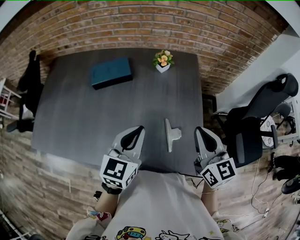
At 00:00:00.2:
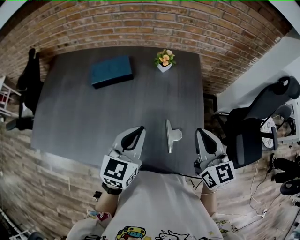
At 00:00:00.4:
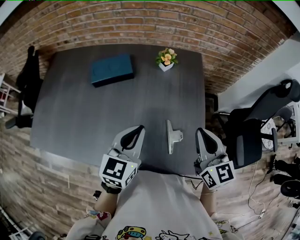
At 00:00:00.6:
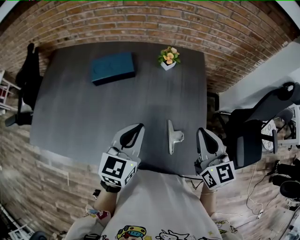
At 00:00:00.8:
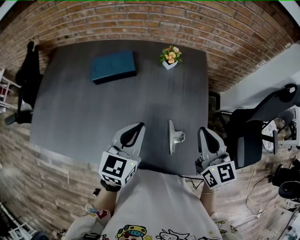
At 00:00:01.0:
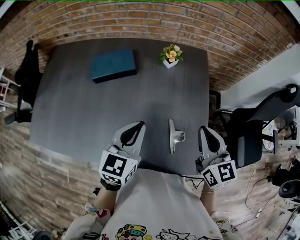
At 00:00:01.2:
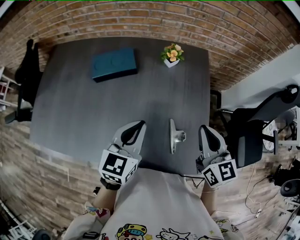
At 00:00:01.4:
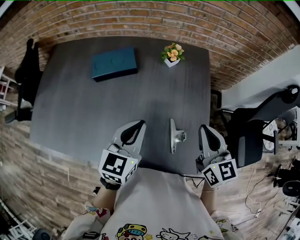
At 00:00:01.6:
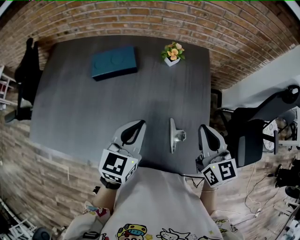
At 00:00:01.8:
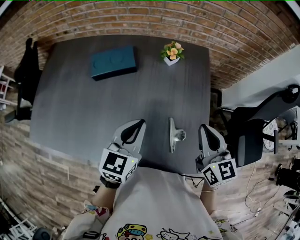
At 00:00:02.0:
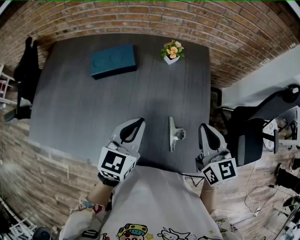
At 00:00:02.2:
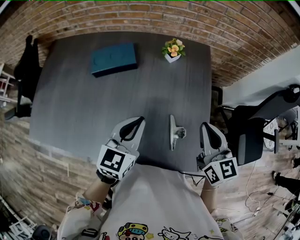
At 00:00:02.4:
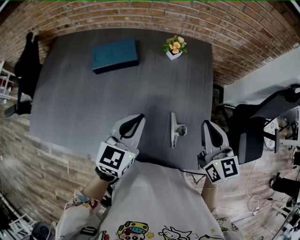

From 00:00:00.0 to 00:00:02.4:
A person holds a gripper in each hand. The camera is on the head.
From 00:00:00.0 to 00:00:01.2: The grippers make only small movements.
From 00:00:01.2 to 00:00:02.4: The two grippers keep their place.

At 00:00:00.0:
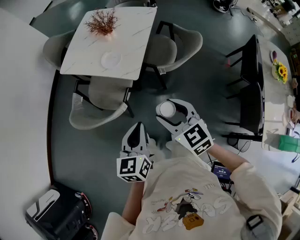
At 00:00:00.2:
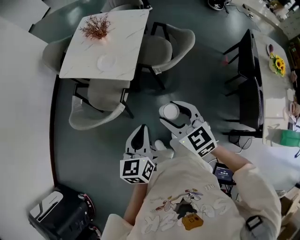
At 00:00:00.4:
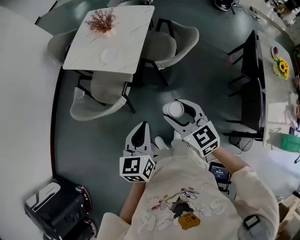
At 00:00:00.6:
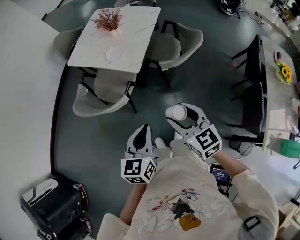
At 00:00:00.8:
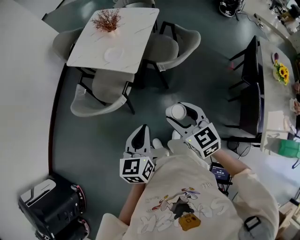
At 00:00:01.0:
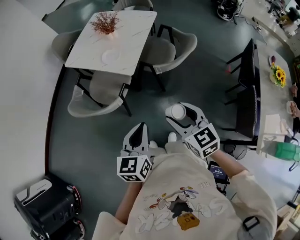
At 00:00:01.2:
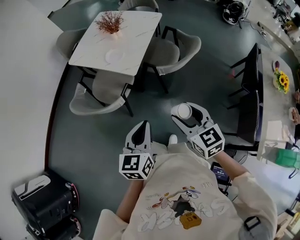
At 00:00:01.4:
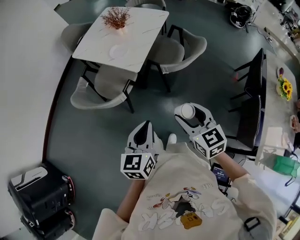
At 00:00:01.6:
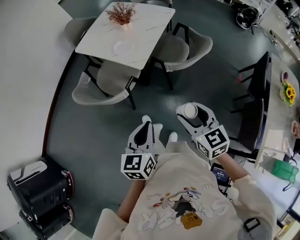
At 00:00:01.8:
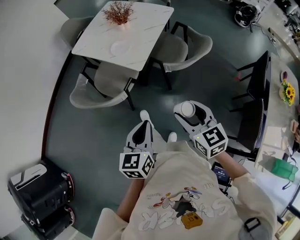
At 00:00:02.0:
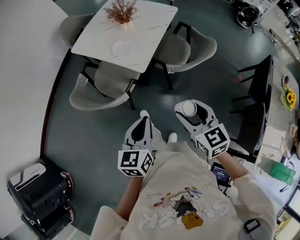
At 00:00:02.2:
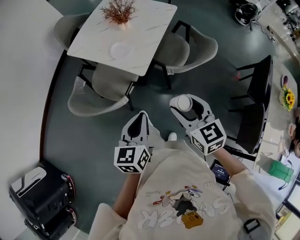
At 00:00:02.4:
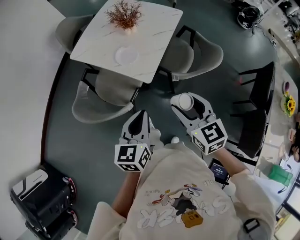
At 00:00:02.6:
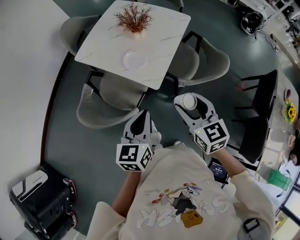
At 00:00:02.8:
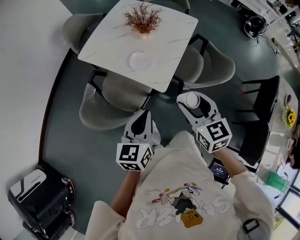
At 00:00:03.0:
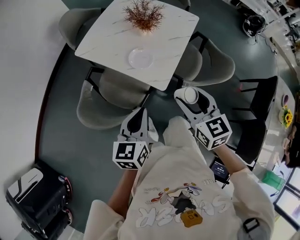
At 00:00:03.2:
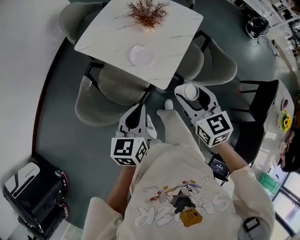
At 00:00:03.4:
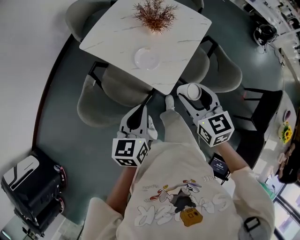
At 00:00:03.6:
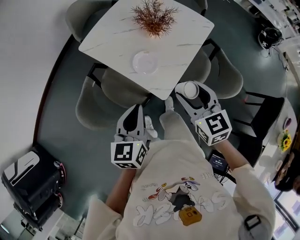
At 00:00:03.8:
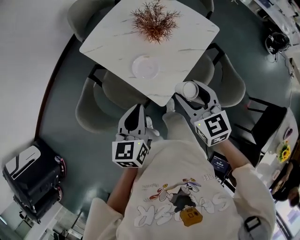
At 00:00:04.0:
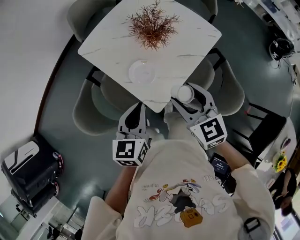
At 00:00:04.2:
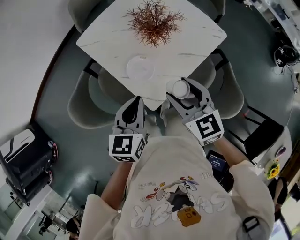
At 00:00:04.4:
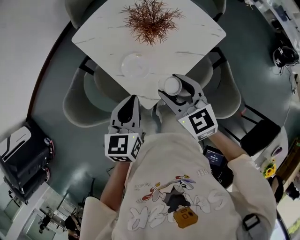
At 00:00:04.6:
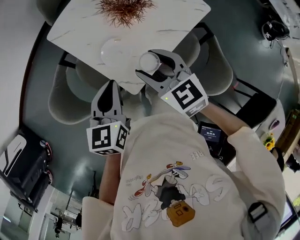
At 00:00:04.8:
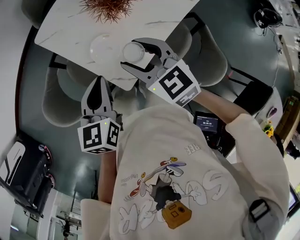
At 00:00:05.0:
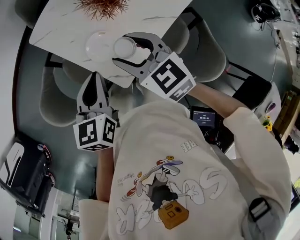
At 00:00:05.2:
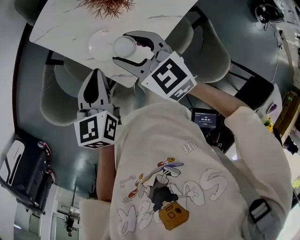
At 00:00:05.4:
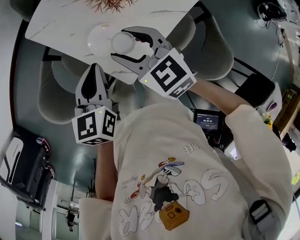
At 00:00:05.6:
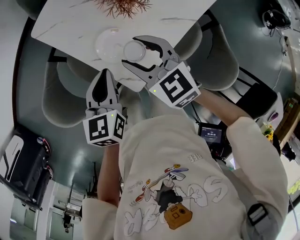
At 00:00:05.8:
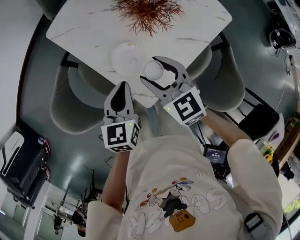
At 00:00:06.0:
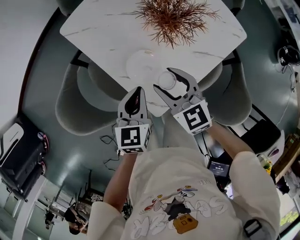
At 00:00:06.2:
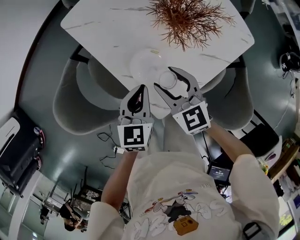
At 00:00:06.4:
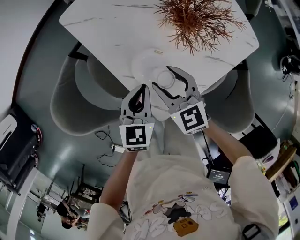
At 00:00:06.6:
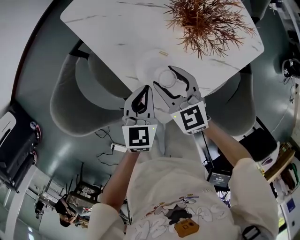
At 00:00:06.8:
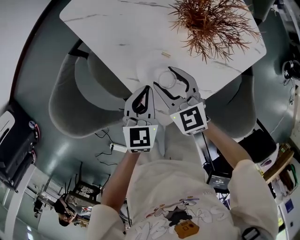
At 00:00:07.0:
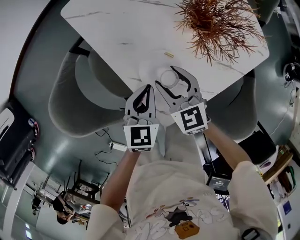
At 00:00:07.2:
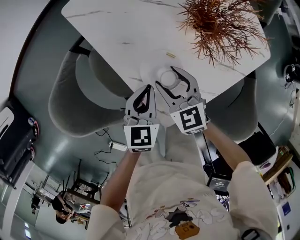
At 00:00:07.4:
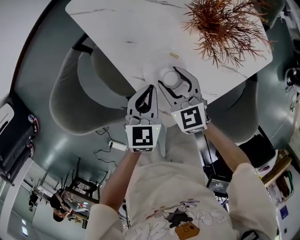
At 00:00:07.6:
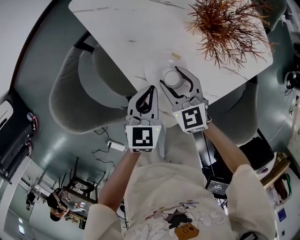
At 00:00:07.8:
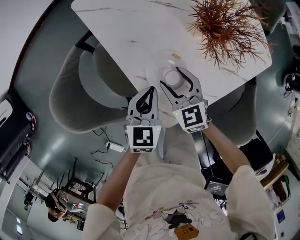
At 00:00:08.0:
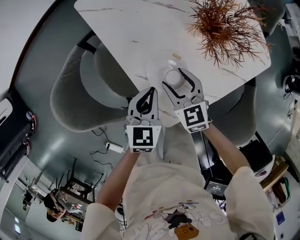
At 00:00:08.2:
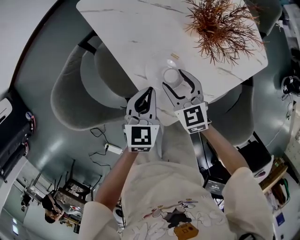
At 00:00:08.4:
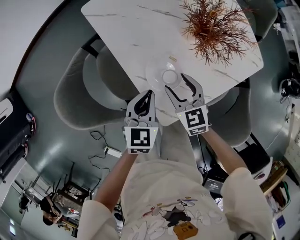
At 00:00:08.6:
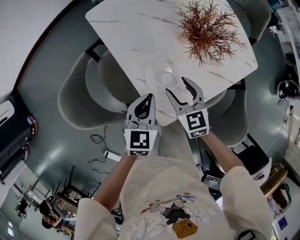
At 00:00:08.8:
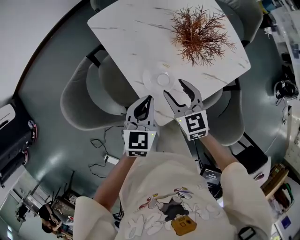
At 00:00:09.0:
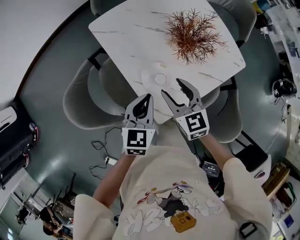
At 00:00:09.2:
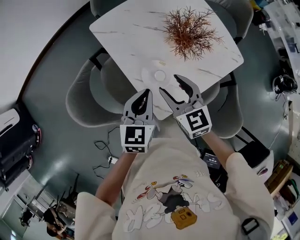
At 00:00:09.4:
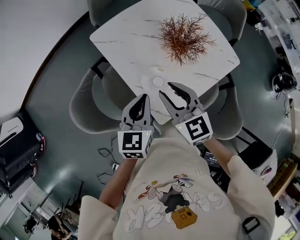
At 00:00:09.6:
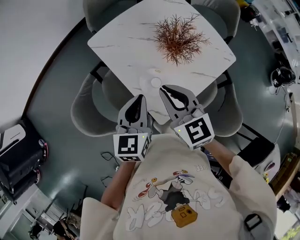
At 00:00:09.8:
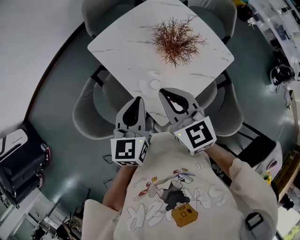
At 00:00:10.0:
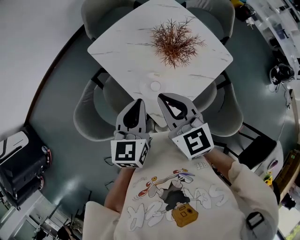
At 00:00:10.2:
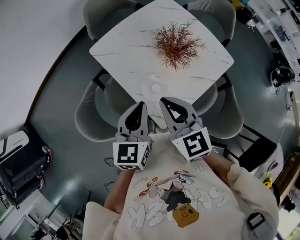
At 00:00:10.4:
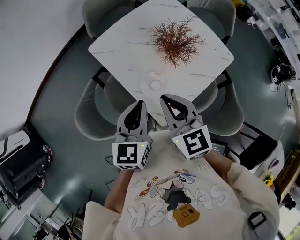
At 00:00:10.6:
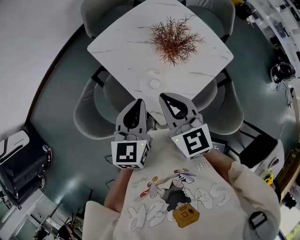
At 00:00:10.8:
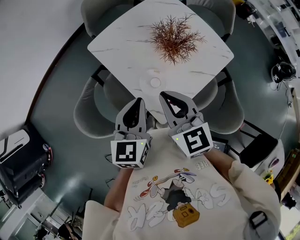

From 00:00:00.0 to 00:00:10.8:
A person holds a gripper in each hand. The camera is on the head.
From 00:00:00.0 to 00:00:01.6: The left gripper heads backward and to the right, covering approximately 15 cm. Meanwhile the right gripper is displaced to the right and backward by some 15 cm.
From 00:00:01.6 to 00:00:03.0: The two grippers go approximately 30 cm forward and to the left.
From 00:00:03.0 to 00:00:04.6: The right gripper moves roughly 25 cm, and rotates some 30 degrees. The left gripper moves some 20 cm, and turns by some 20 degrees.
From 00:00:04.6 to 00:00:06.2: The left gripper travels downward and forward by some 15 cm. Meanwhile the right gripper shifts approximately 15 cm downward, forward and to the left.
From 00:00:06.2 to 00:00:07.8: The left gripper goes some 5 cm downward. Meanwhile the right gripper shifts some 10 cm downward.
From 00:00:07.8 to 00:00:09.2: The grippers both shift upward by roughly 20 cm.
From 00:00:09.2 to 00:00:10.8: Both grippers move upward, approximately 10 cm. The right gripper closes its fingers.

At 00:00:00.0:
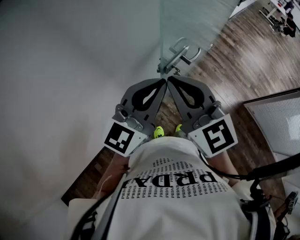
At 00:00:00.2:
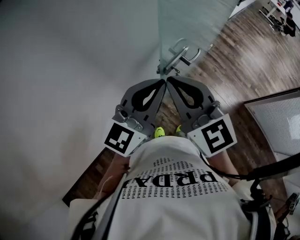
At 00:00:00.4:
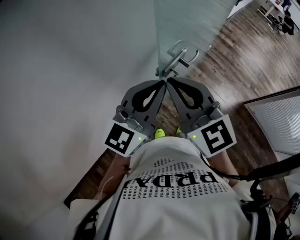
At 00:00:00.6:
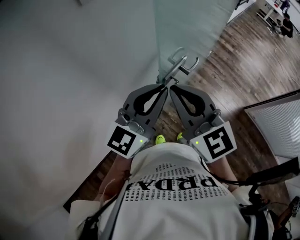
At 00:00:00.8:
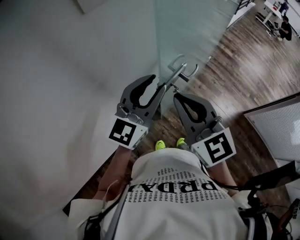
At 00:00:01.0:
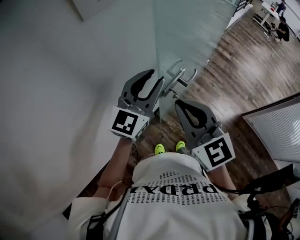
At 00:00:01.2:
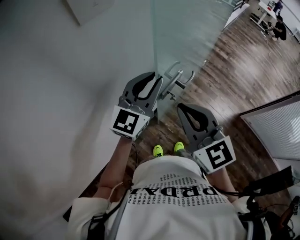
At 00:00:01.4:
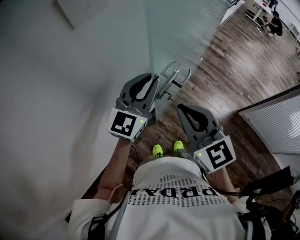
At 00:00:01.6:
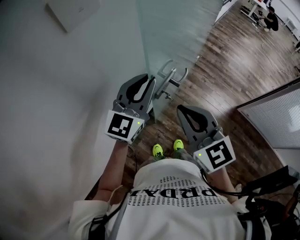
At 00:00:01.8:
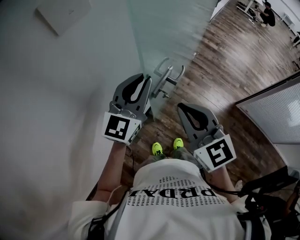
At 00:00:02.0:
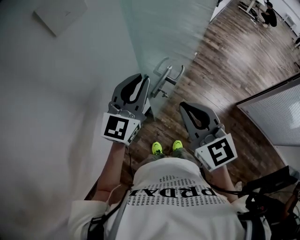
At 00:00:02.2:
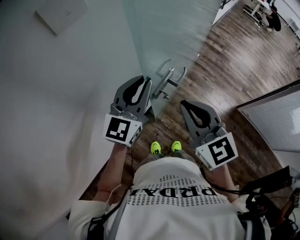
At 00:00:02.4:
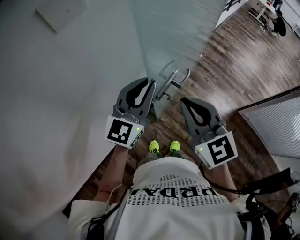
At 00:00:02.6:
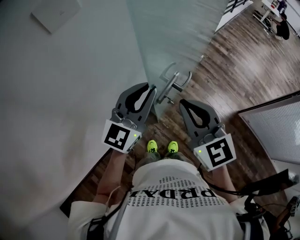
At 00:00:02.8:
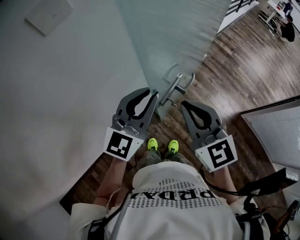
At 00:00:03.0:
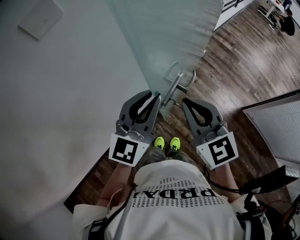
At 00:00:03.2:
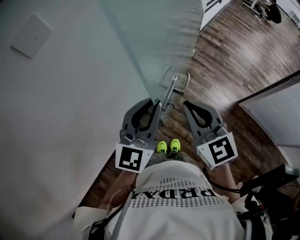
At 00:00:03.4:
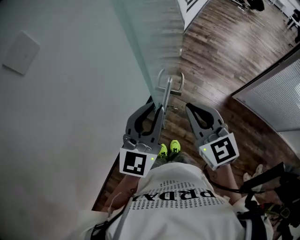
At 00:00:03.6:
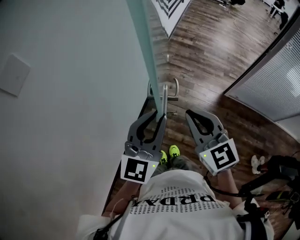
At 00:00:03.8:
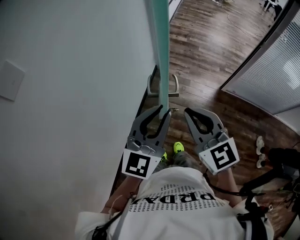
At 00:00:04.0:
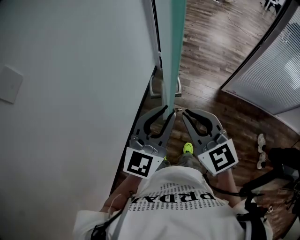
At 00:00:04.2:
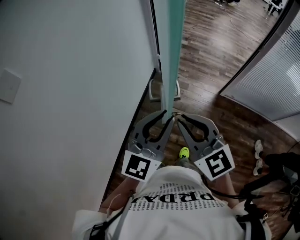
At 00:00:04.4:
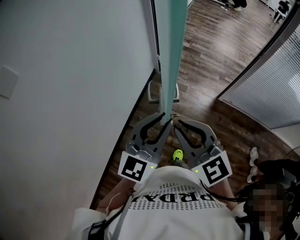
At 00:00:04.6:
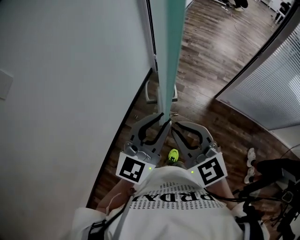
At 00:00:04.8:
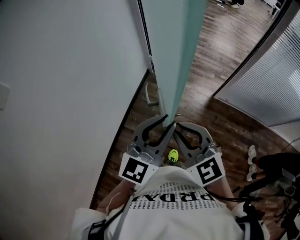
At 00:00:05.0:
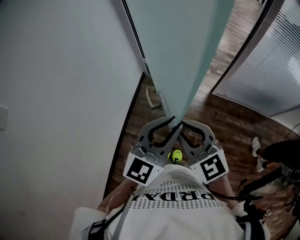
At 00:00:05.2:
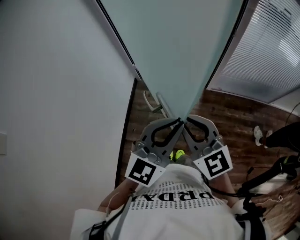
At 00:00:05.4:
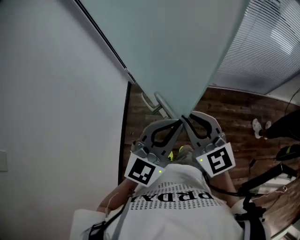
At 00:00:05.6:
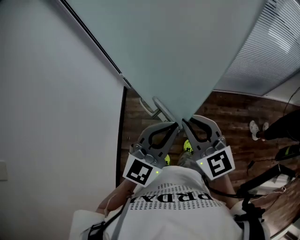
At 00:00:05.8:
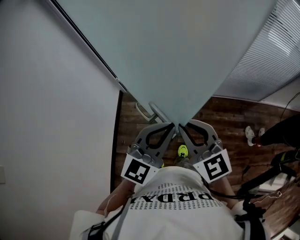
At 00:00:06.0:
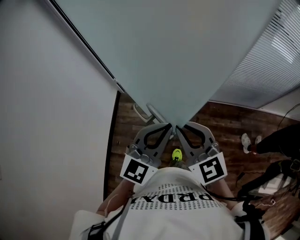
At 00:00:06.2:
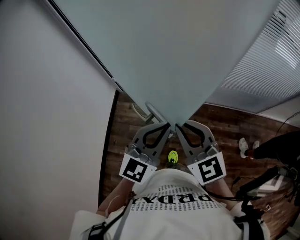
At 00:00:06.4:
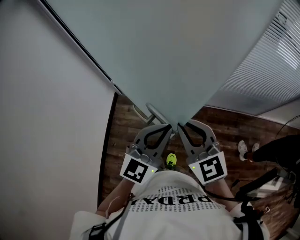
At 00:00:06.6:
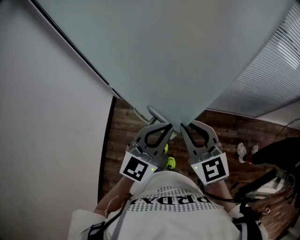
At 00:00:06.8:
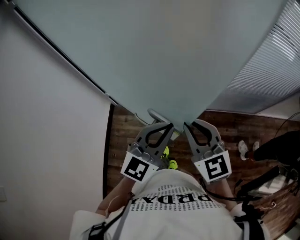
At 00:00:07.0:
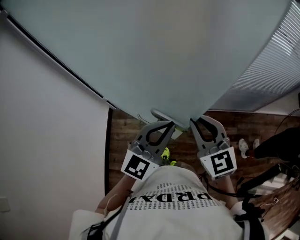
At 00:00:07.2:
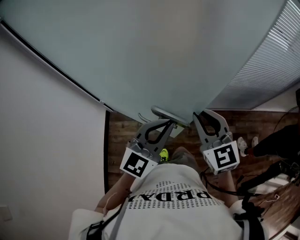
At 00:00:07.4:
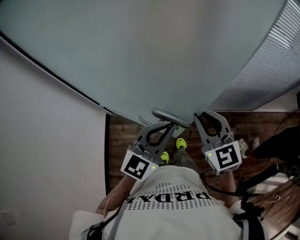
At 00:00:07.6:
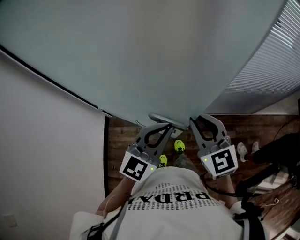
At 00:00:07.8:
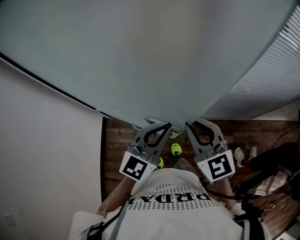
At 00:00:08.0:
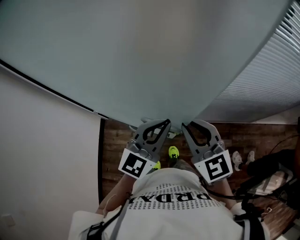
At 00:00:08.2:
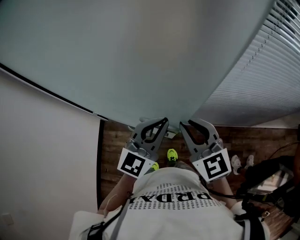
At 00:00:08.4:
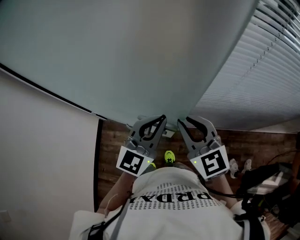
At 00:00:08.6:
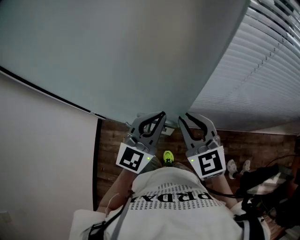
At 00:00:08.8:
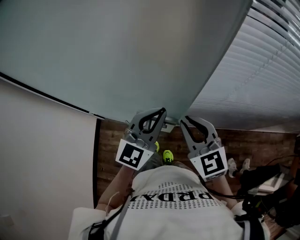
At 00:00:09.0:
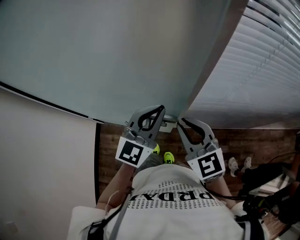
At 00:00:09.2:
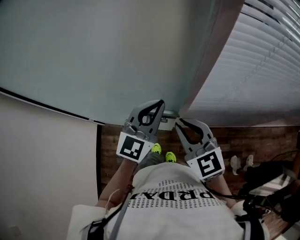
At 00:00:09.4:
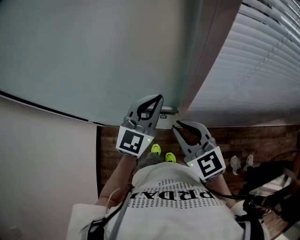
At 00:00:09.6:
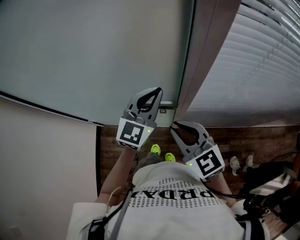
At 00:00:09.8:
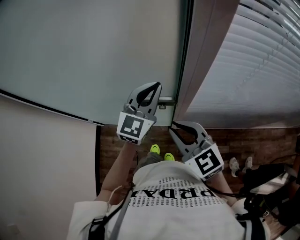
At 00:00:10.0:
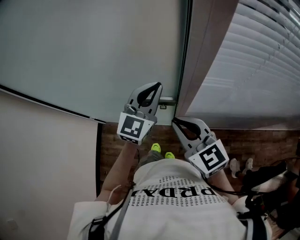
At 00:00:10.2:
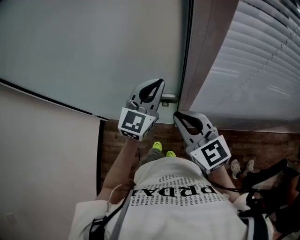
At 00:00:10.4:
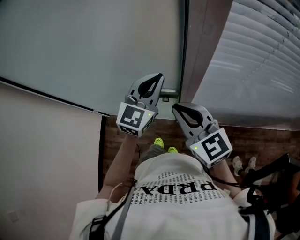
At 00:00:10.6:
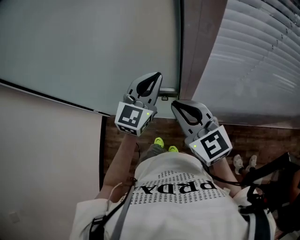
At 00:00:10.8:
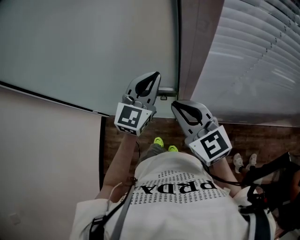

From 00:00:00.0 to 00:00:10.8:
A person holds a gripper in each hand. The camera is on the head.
From 00:00:00.0 to 00:00:01.6: The left gripper goes roughly 10 cm forward; the right gripper shifts some 5 cm to the right.
From 00:00:01.6 to 00:00:03.0: The right gripper moves forward, some 10 cm.
From 00:00:03.0 to 00:00:04.6: Both grippers travel together to the right, approximately 35 cm. The left gripper rotates roughly 20 degrees.
From 00:00:04.6 to 00:00:06.2: The right gripper shifts by about 10 cm, and rotates some 20 degrees, while the left gripper shifts by about 10 cm, and swivels some 20 degrees.
From 00:00:06.2 to 00:00:07.8: There are only small adjustments of the grippers.
From 00:00:07.8 to 00:00:09.2: The left gripper heads forward, covering approximately 5 cm.
From 00:00:09.2 to 00:00:10.8: The left gripper travels forward by some 5 cm. Meanwhile the right gripper shifts by approximately 5 cm.
